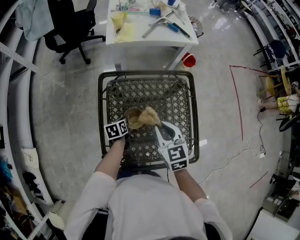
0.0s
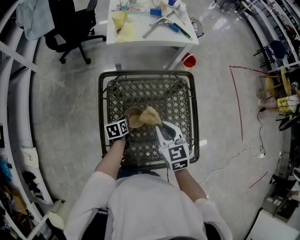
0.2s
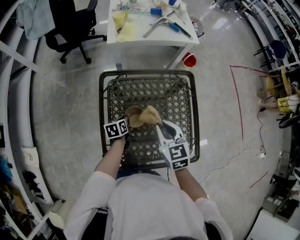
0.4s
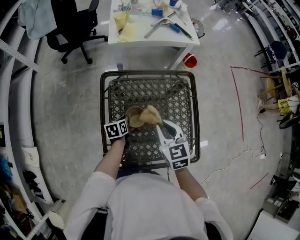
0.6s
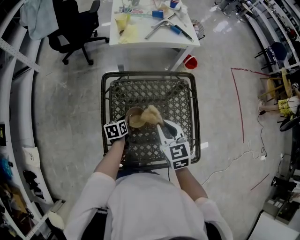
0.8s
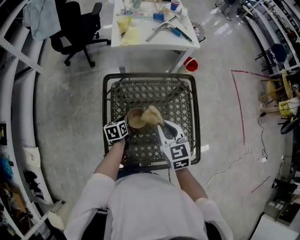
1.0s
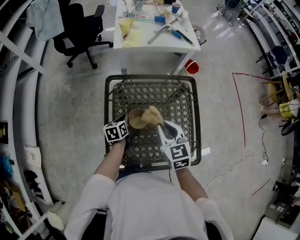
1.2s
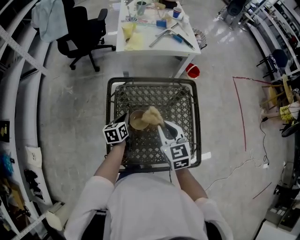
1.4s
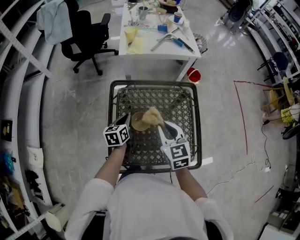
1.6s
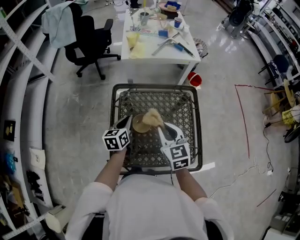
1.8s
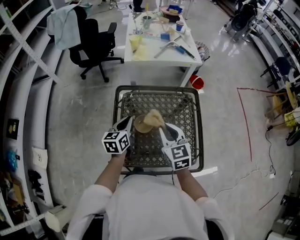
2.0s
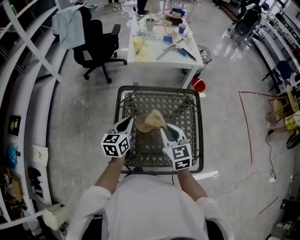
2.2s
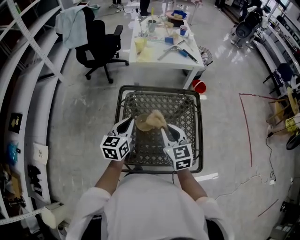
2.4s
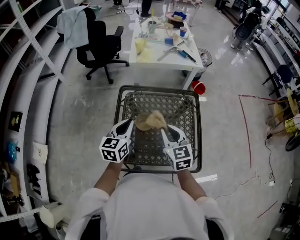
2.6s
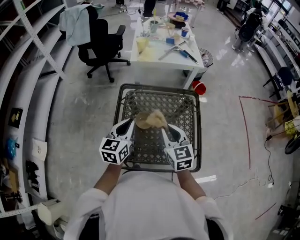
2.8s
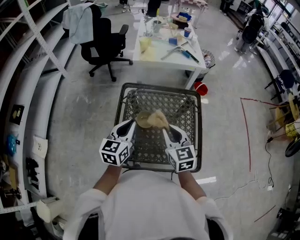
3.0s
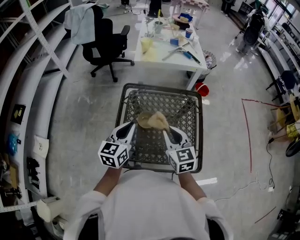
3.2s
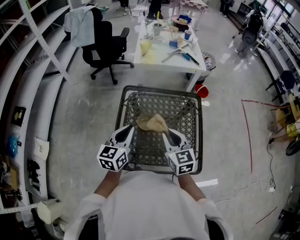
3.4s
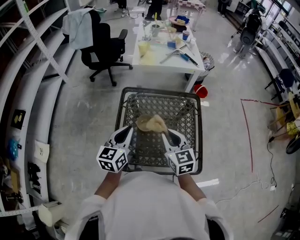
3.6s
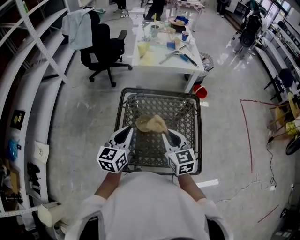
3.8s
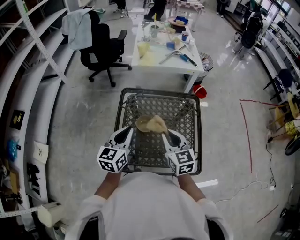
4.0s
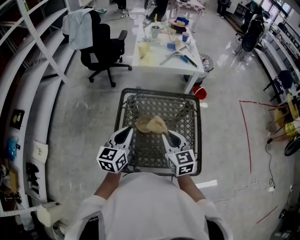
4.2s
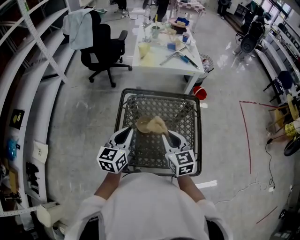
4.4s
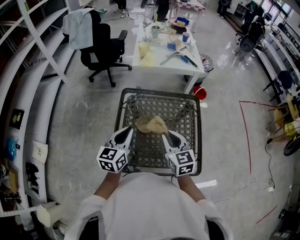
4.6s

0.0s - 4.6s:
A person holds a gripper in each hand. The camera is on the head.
0.0s - 1.6s: The left gripper travels upward by approximately 15 cm, and swivels some 20 degrees.
1.6s - 3.0s: The left gripper moves upward and backward, approximately 20 cm, and changes its angle by about 20 degrees; the right gripper is displaced backward by approximately 5 cm.
3.0s - 4.6s: The grippers move only a little.

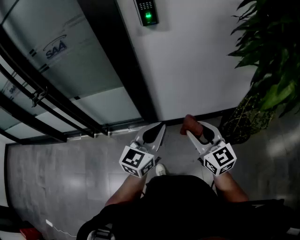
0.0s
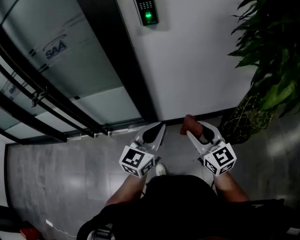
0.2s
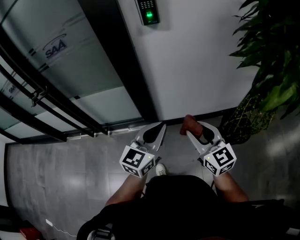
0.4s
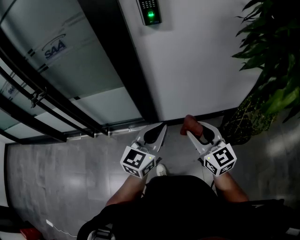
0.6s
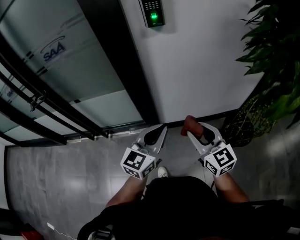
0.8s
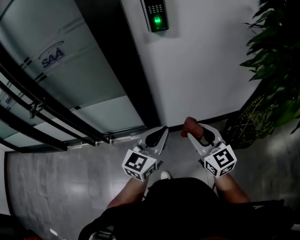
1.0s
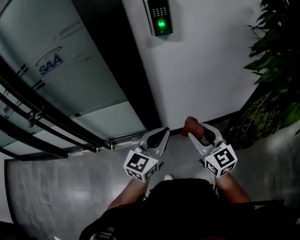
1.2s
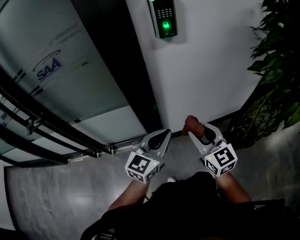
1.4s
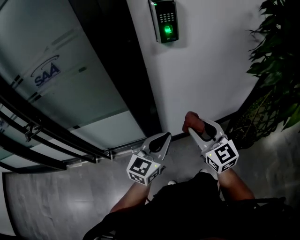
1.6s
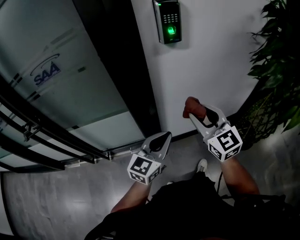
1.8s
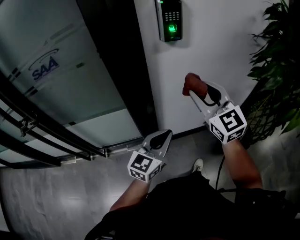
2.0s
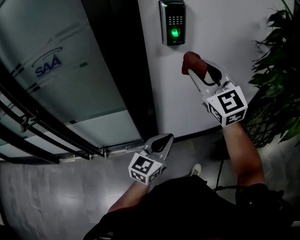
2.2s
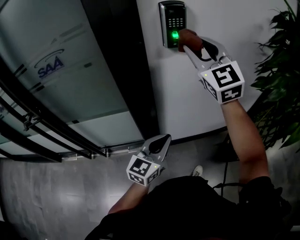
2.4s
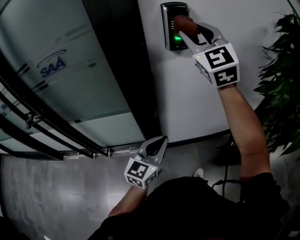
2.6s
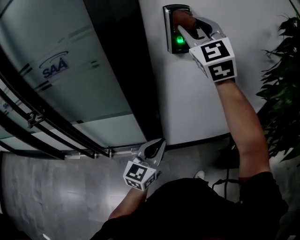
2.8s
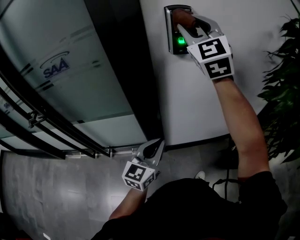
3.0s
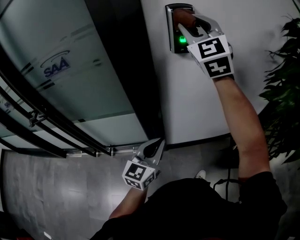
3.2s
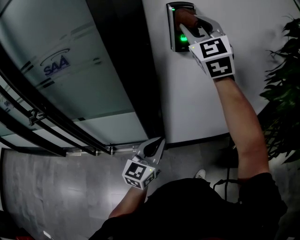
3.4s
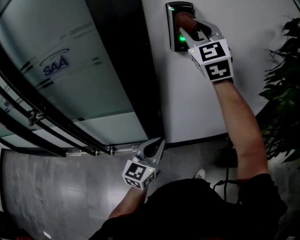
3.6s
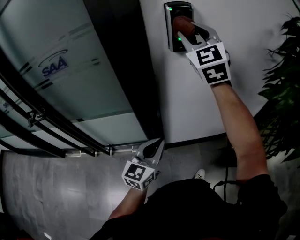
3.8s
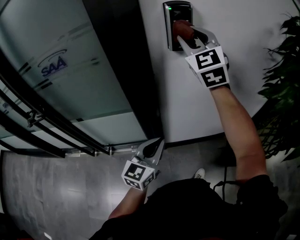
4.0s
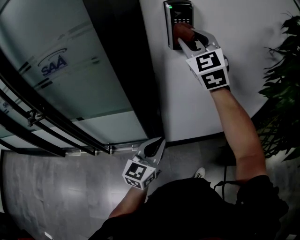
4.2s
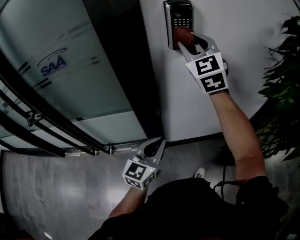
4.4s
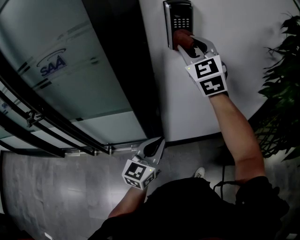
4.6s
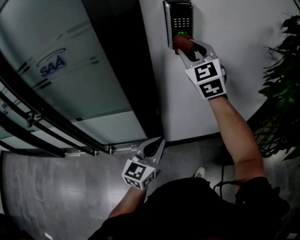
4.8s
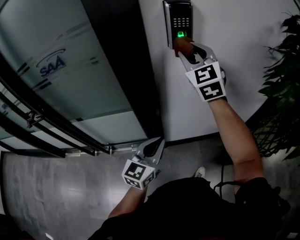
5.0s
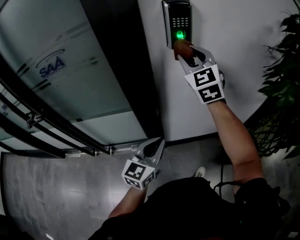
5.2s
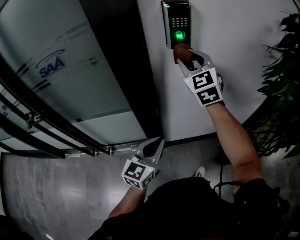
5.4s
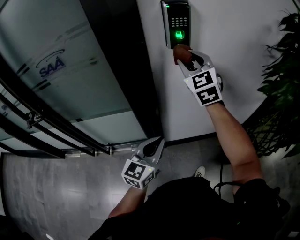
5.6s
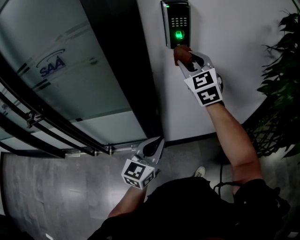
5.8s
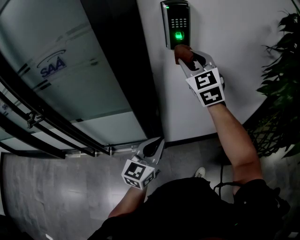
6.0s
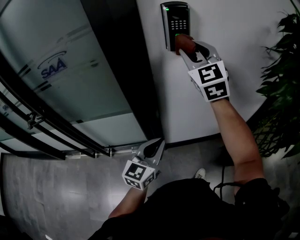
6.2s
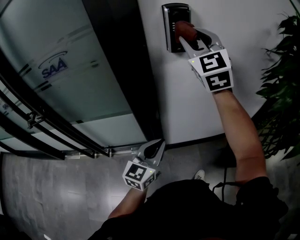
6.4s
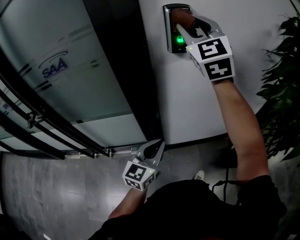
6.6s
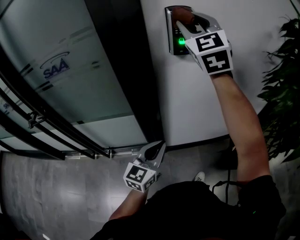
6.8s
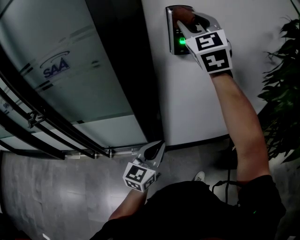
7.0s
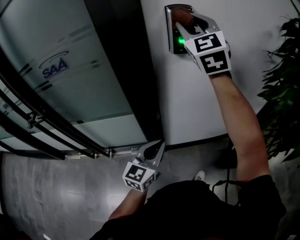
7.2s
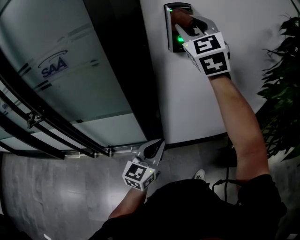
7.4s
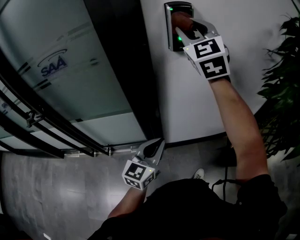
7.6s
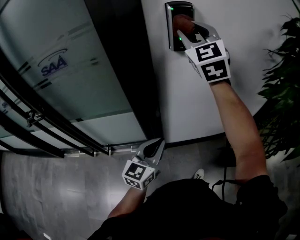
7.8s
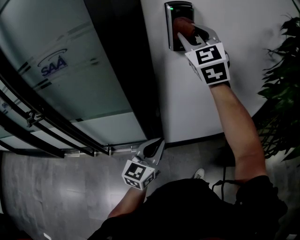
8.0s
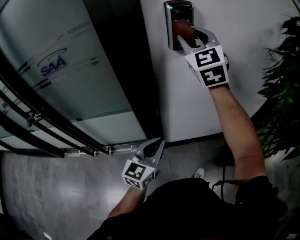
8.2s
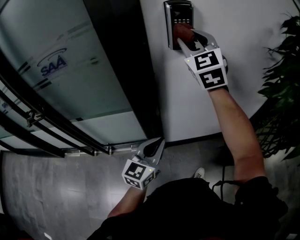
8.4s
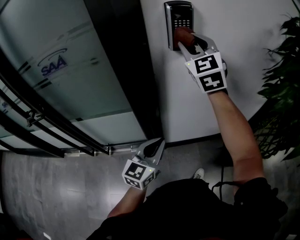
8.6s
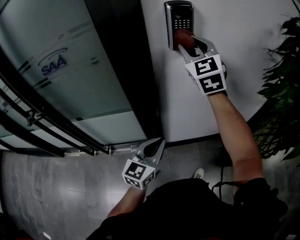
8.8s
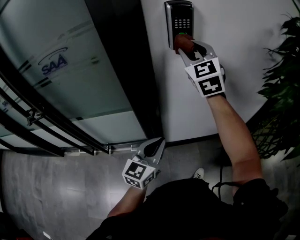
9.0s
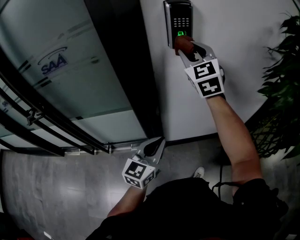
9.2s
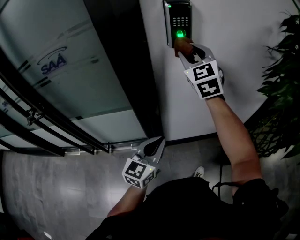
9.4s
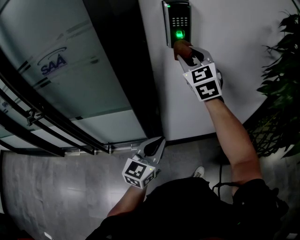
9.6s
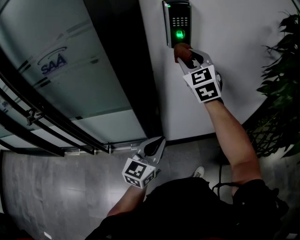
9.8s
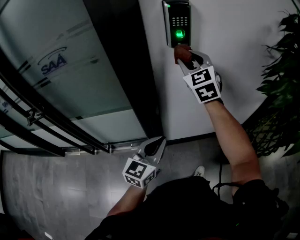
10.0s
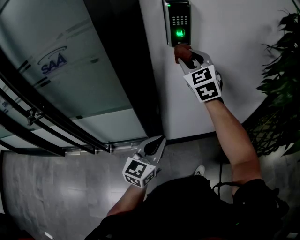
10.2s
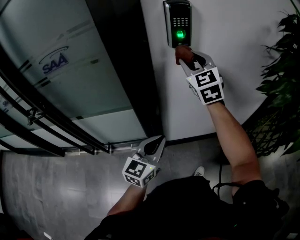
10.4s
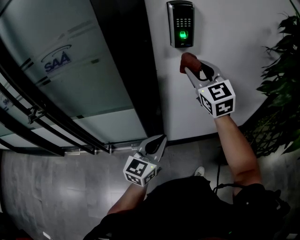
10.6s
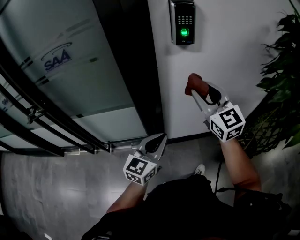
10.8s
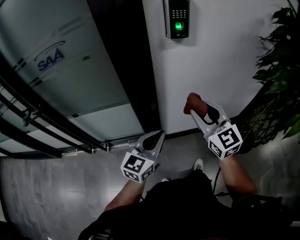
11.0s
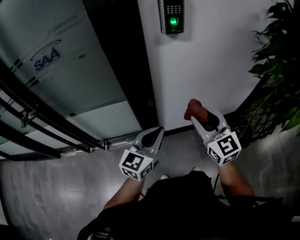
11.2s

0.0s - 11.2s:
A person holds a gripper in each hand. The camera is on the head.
0.0s - 1.6s: The two grippers go roughly 15 cm forward and to the left.
1.6s - 3.2s: The right gripper travels upward and forward by approximately 40 cm, and swivels approximately 40 degrees.
3.2s - 4.8s: The right gripper goes approximately 10 cm downward.
4.8s - 6.4s: The right gripper shifts approximately 5 cm upward.
6.4s - 8.0s: There are only small adjustments of the grippers.
8.0s - 9.6s: The right gripper goes some 10 cm downward.
9.6s - 11.2s: The right gripper goes about 30 cm backward and downward, and turns by about 20 degrees.

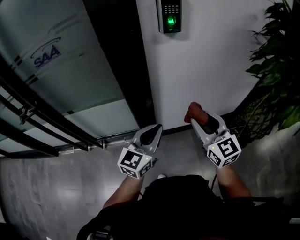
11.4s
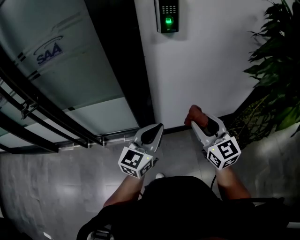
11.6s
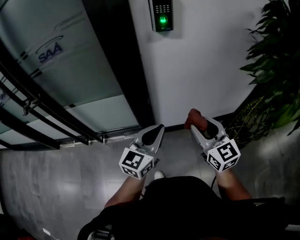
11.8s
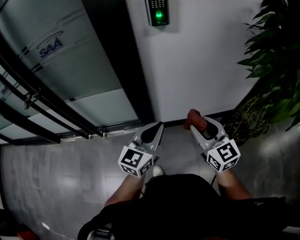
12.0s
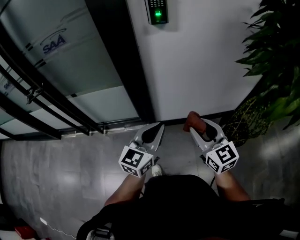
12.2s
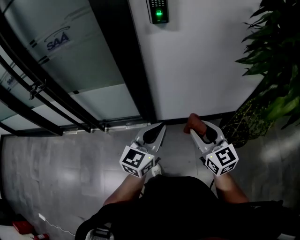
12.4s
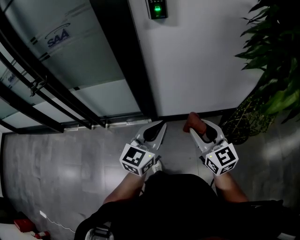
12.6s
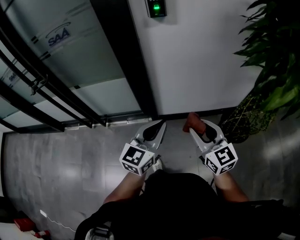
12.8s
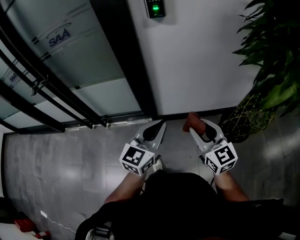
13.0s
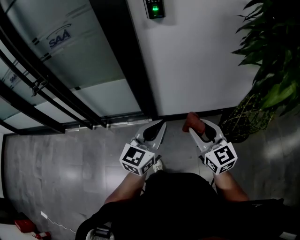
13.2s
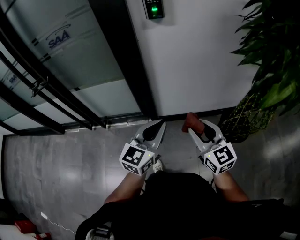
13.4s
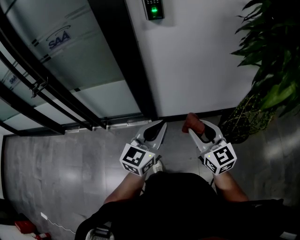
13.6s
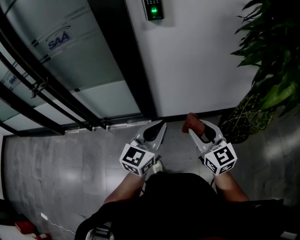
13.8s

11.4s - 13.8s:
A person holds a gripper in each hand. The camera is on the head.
11.4s - 12.6s: The two grippers go some 15 cm backward and to the right.
12.6s - 13.8s: There are only small adjustments of the grippers.

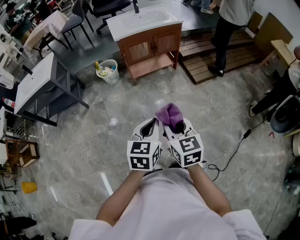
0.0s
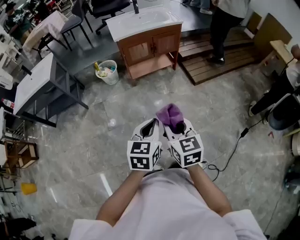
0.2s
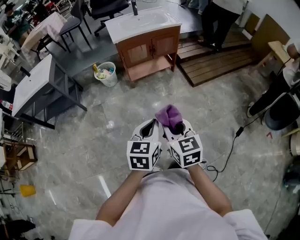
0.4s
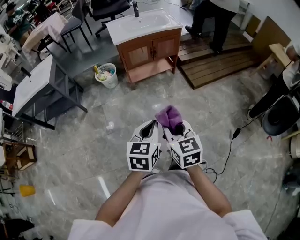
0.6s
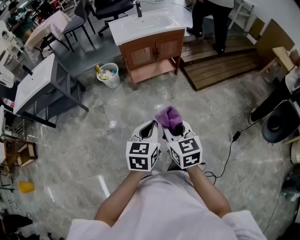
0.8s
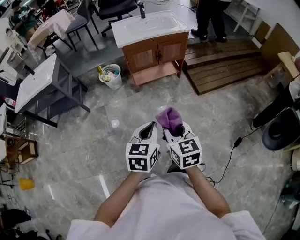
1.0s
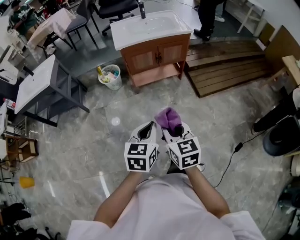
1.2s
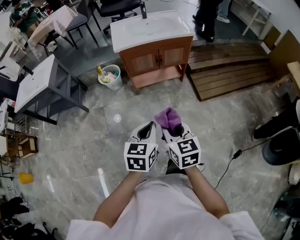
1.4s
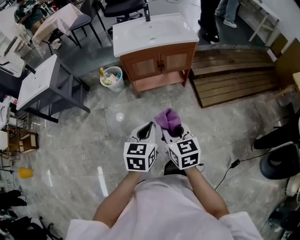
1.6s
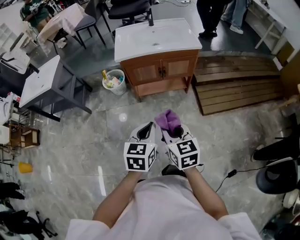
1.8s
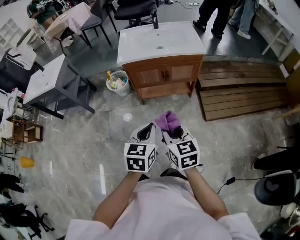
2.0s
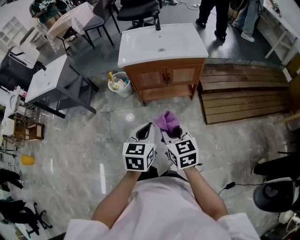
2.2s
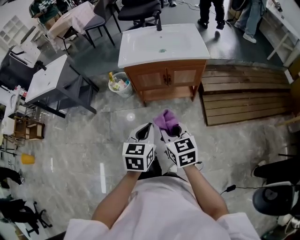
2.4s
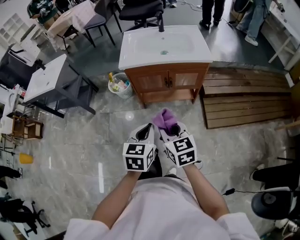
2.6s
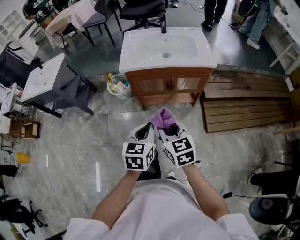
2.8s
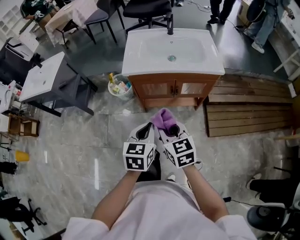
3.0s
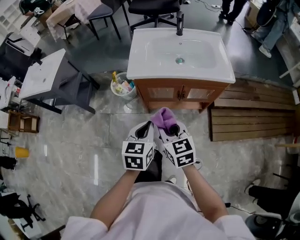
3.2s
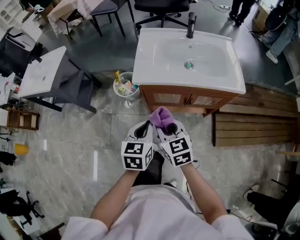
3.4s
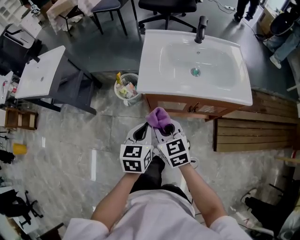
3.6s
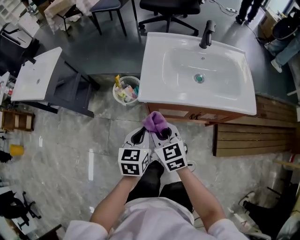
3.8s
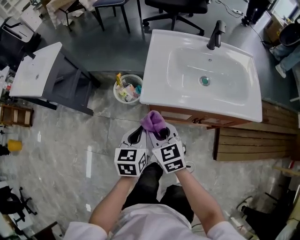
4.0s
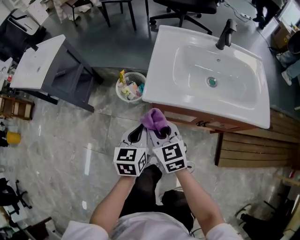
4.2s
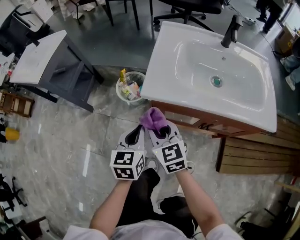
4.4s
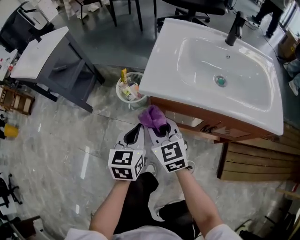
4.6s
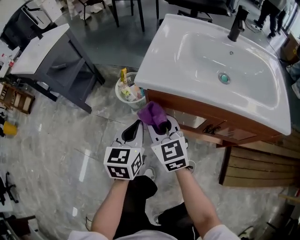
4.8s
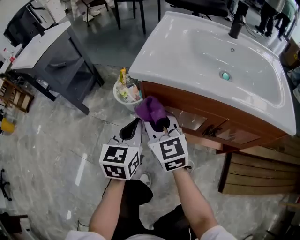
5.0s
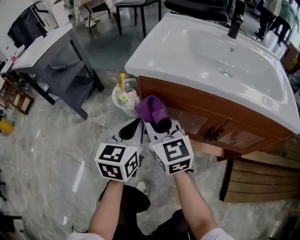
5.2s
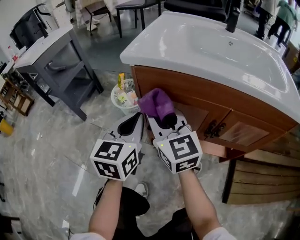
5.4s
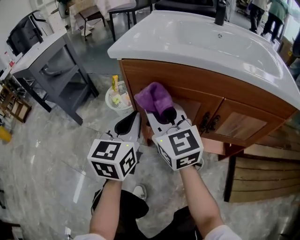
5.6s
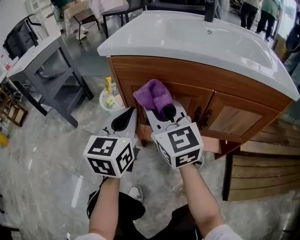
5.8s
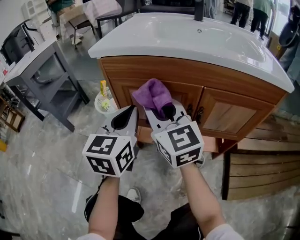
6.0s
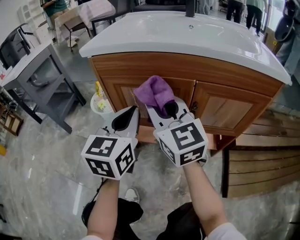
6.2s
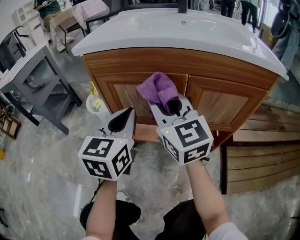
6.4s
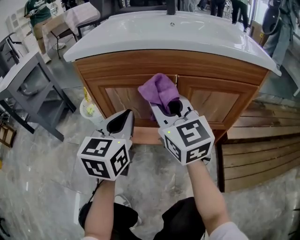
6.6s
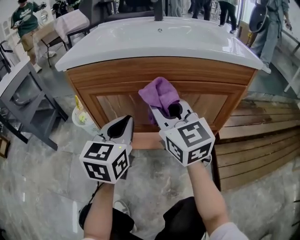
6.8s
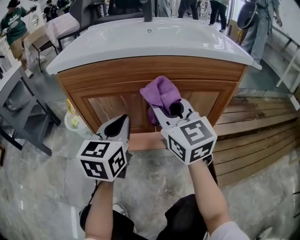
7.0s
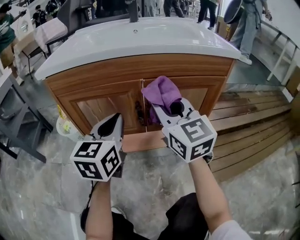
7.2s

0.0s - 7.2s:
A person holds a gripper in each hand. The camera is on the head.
0.0s - 1.4s: Both grippers travel together forward, roughly 15 cm.
1.4s - 2.8s: Both grippers move forward, roughly 20 cm.
2.8s - 4.4s: The grippers both shift forward, downward and to the left by roughly 40 cm.
4.4s - 5.8s: The left gripper goes roughly 15 cm downward and to the right, and changes its angle by about 20 degrees. Meanwhile the right gripper travels to the right and downward by roughly 10 cm, and turns by about 20 degrees.
5.8s - 7.2s: The right gripper heads to the right, covering approximately 20 cm, and changes its angle by some 20 degrees, while the left gripper shifts about 15 cm to the right.
